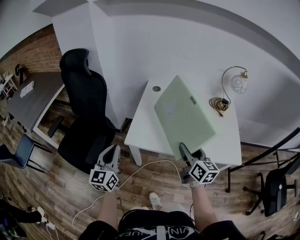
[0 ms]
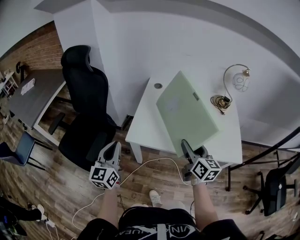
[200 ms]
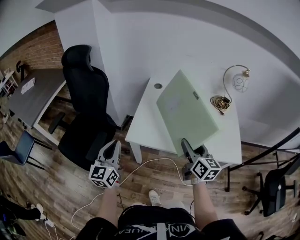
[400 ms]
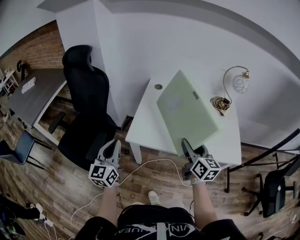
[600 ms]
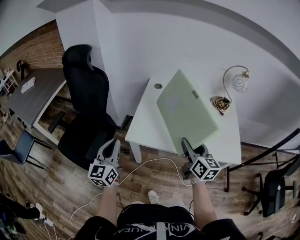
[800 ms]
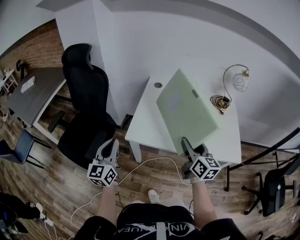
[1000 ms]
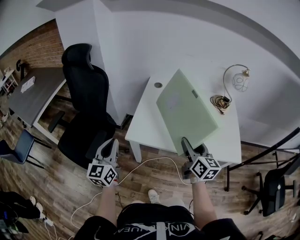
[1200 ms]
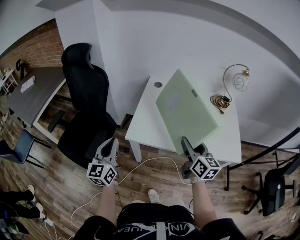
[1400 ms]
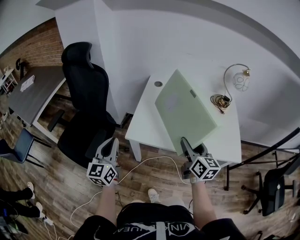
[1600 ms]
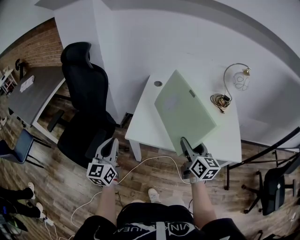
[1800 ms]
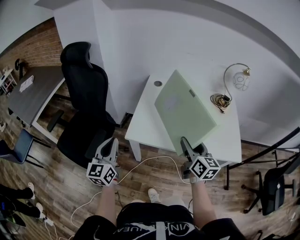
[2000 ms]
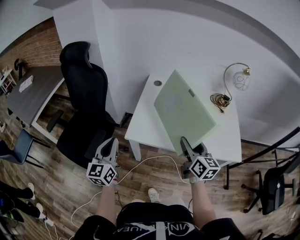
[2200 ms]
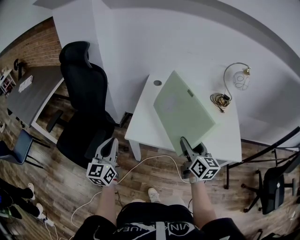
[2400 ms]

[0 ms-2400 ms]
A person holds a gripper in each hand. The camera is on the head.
0 ms to 2400 ms: The grippers stay close to where they were, moving slightly.

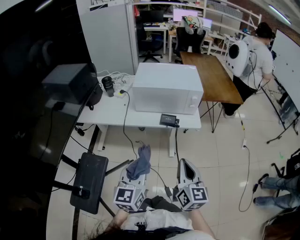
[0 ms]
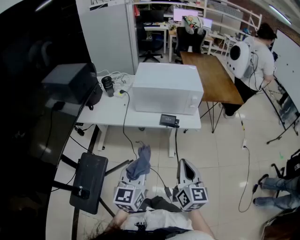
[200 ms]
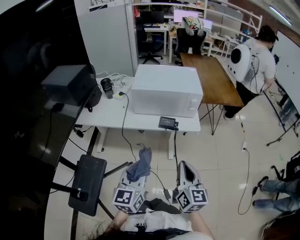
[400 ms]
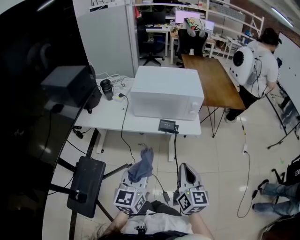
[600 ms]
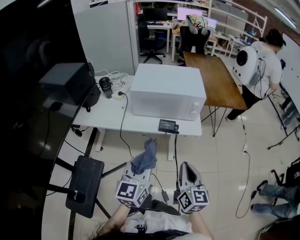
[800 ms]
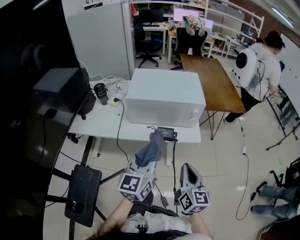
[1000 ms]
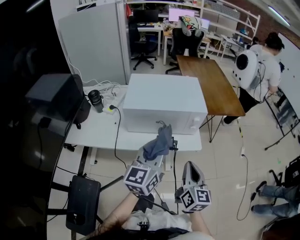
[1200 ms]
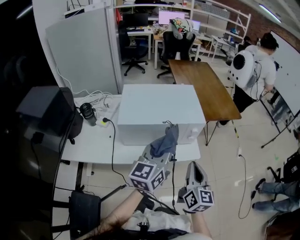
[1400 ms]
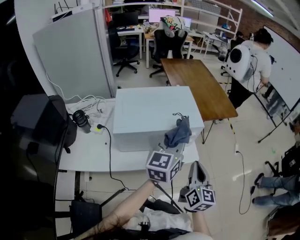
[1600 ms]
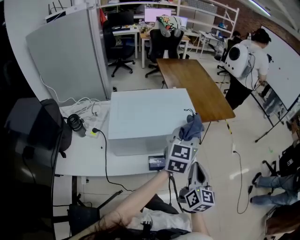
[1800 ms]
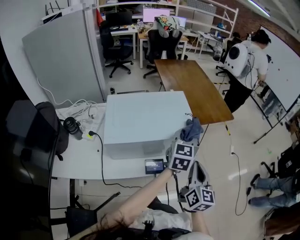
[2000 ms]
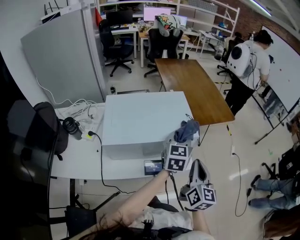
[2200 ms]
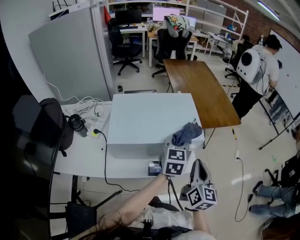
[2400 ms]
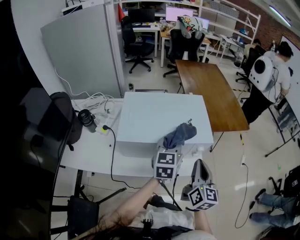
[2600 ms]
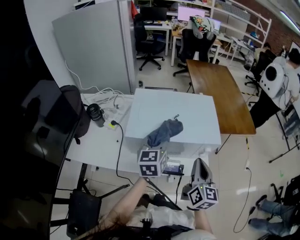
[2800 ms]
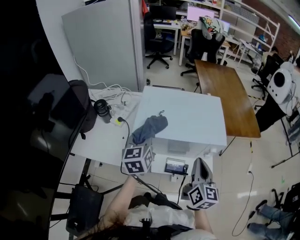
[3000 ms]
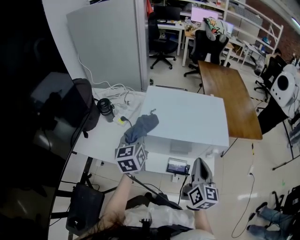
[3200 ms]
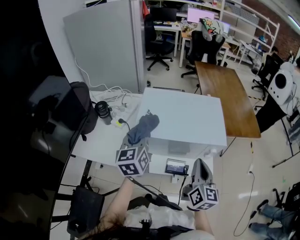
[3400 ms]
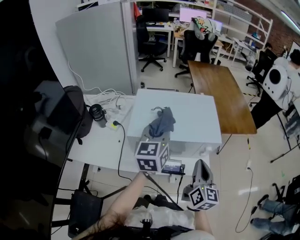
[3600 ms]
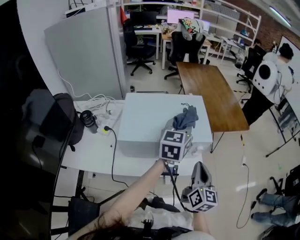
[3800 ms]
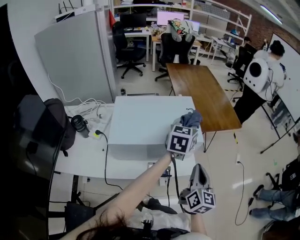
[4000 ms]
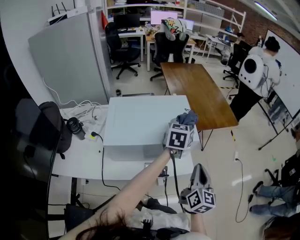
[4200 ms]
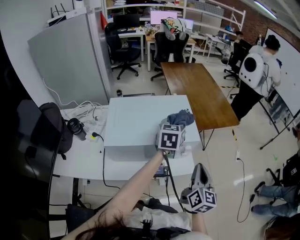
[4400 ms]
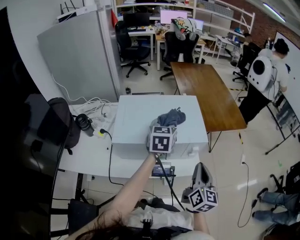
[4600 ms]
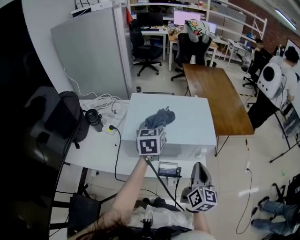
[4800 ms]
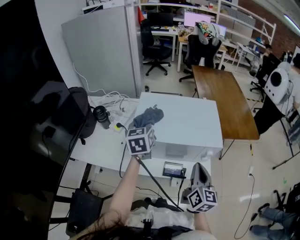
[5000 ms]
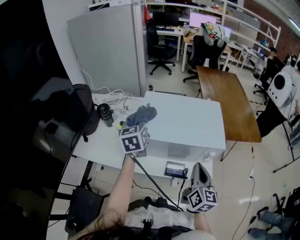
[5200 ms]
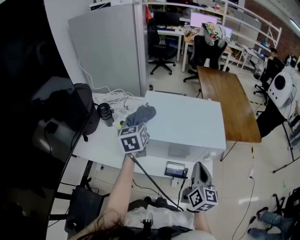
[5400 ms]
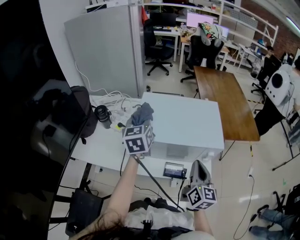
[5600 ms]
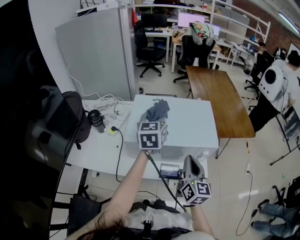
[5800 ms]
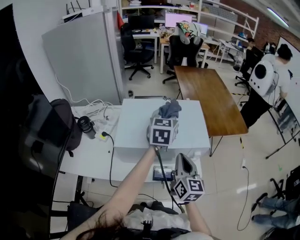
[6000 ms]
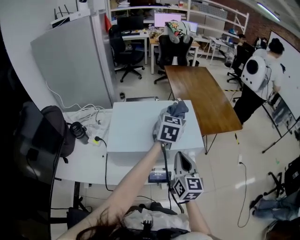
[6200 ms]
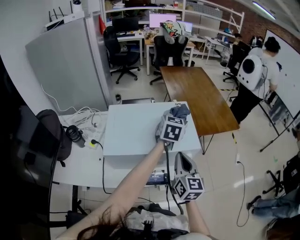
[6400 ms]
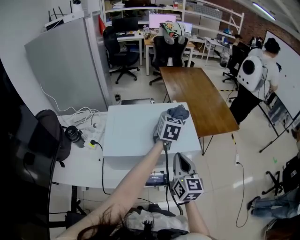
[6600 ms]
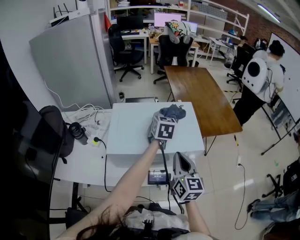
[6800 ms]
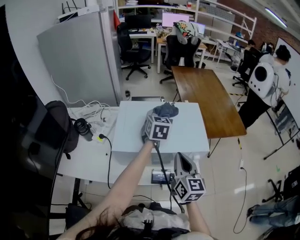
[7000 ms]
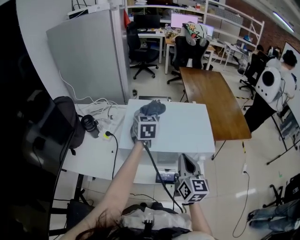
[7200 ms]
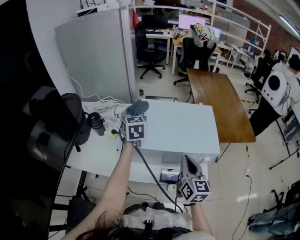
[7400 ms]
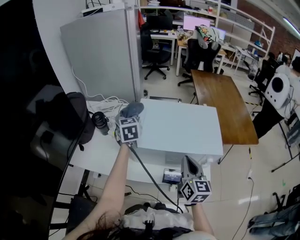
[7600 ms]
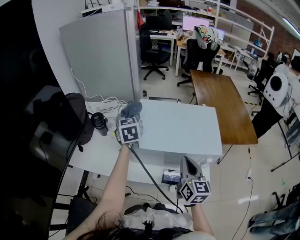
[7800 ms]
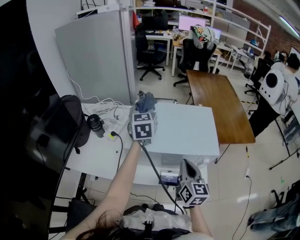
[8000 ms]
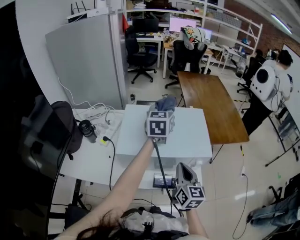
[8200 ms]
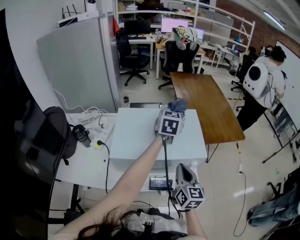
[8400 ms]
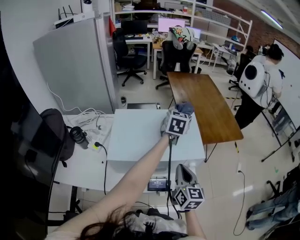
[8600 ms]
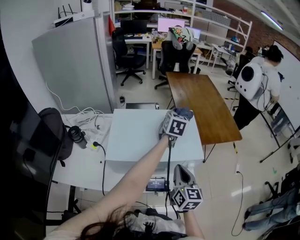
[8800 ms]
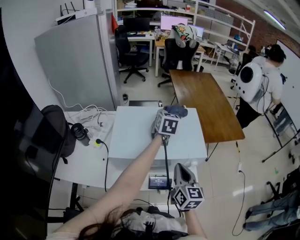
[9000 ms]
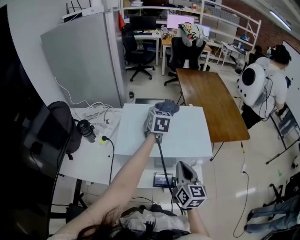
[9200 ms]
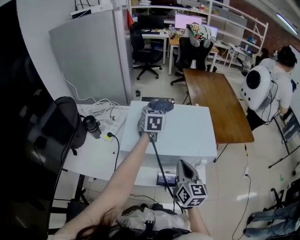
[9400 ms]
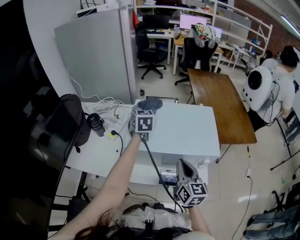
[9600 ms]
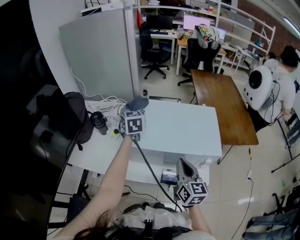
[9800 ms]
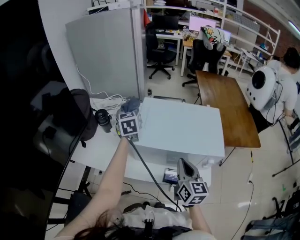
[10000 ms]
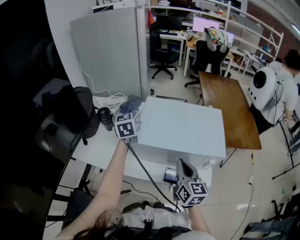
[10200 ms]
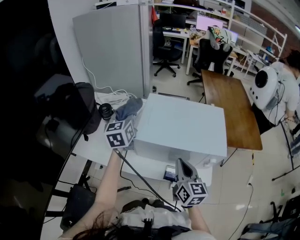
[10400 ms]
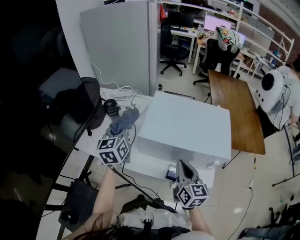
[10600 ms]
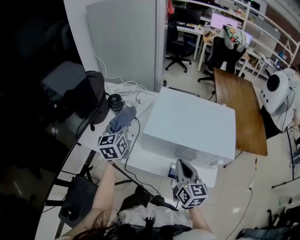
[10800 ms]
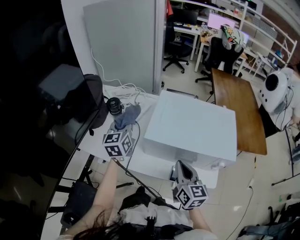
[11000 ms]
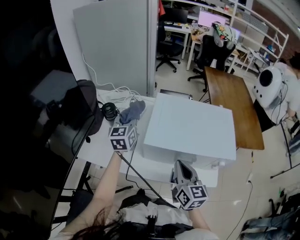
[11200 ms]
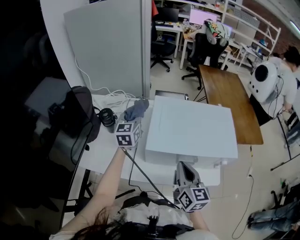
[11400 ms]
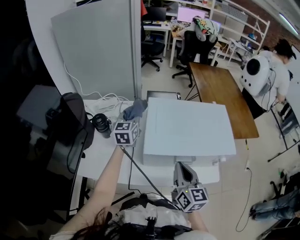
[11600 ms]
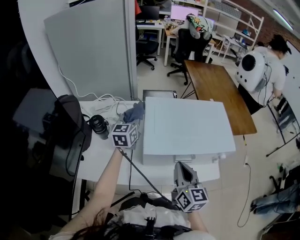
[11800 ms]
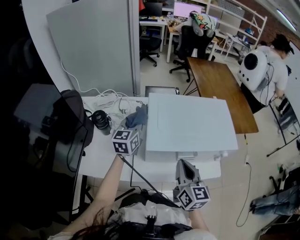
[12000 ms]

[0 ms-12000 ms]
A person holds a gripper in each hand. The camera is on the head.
0 ms to 1600 ms: The left gripper shifts approximately 40 cm forward, and changes its angle by roughly 30 degrees, while the right gripper is displaced forward by some 25 cm, and changes its angle by some 20 degrees.
1600 ms to 3000 ms: The left gripper changes place by some 25 cm, and turns by approximately 40 degrees. Meanwhile the right gripper changes place by roughly 10 cm.
3000 ms to 4400 ms: The left gripper shifts by some 30 cm, and rotates roughly 30 degrees; the right gripper moves about 10 cm.
4400 ms to 6000 ms: The right gripper changes place by about 15 cm.
6000 ms to 7600 ms: The left gripper moves about 30 cm, and changes its angle by some 30 degrees.
7600 ms to 9000 ms: The left gripper moves some 5 cm upward and comes back, and rotates some 30 degrees; the right gripper shifts by roughly 5 cm.
9000 ms to 10400 ms: The right gripper heads to the left, covering some 10 cm. The left gripper moves to the left, some 35 cm, and turns by roughly 30 degrees.
10400 ms to 12000 ms: The right gripper heads to the left, covering approximately 5 cm, while the left gripper moves forward and backward over about 20 cm, changing direction 2 times, and changes its angle by some 20 degrees.

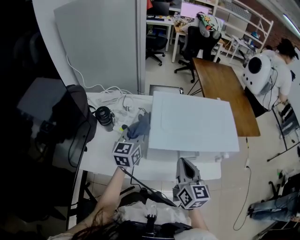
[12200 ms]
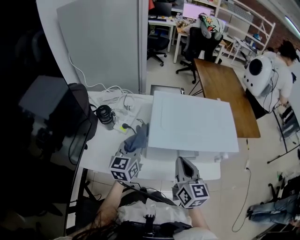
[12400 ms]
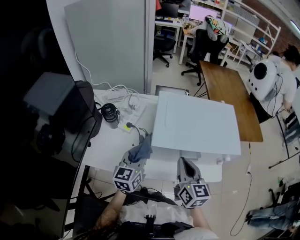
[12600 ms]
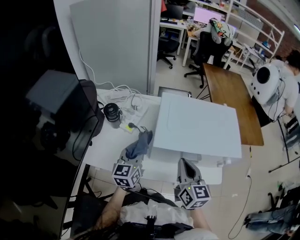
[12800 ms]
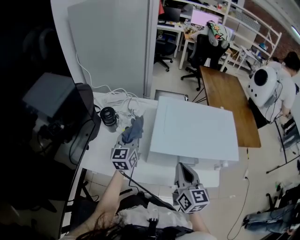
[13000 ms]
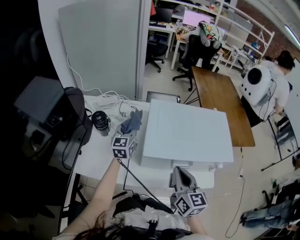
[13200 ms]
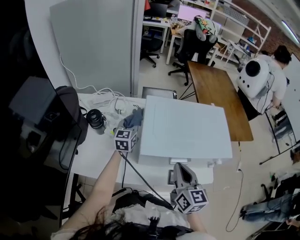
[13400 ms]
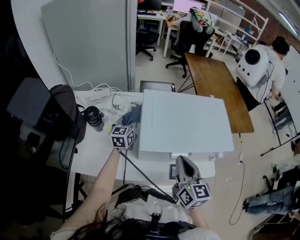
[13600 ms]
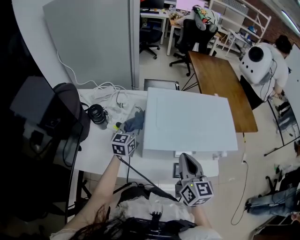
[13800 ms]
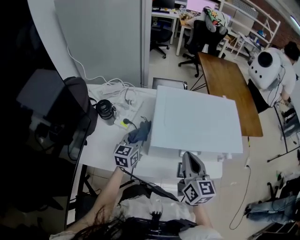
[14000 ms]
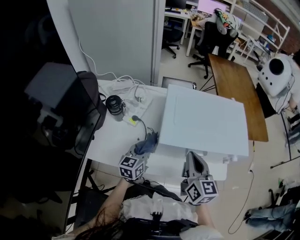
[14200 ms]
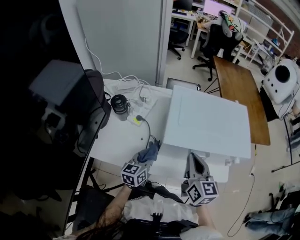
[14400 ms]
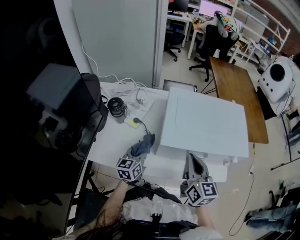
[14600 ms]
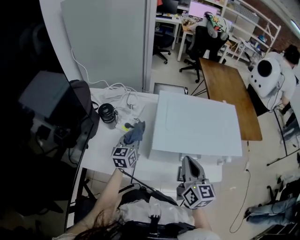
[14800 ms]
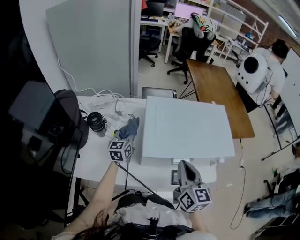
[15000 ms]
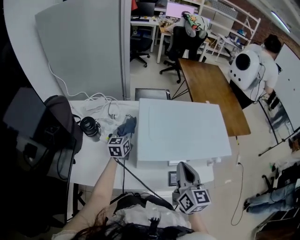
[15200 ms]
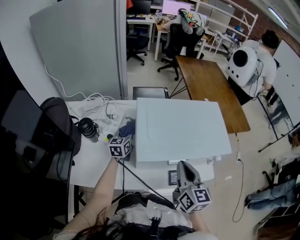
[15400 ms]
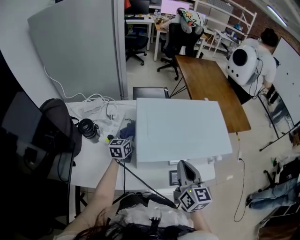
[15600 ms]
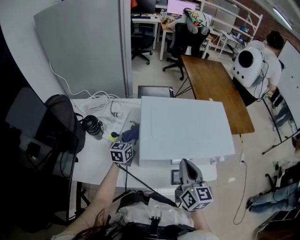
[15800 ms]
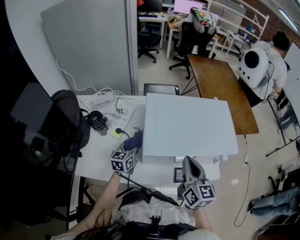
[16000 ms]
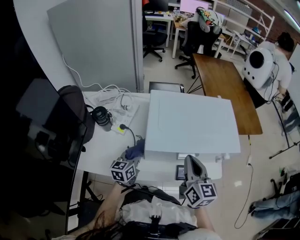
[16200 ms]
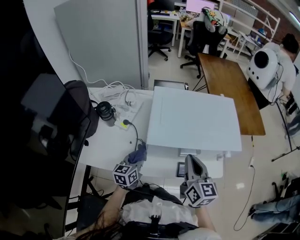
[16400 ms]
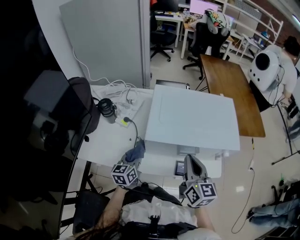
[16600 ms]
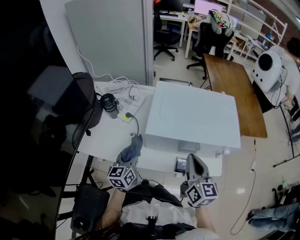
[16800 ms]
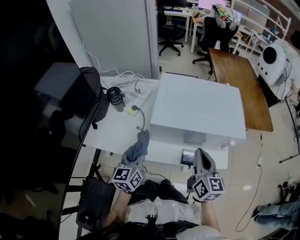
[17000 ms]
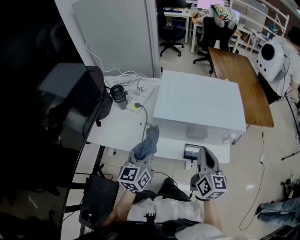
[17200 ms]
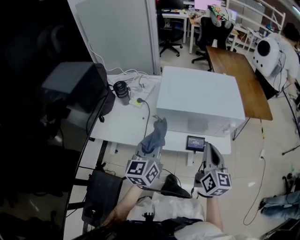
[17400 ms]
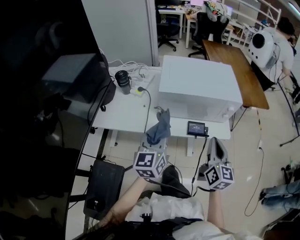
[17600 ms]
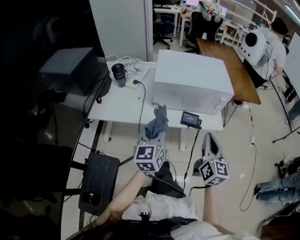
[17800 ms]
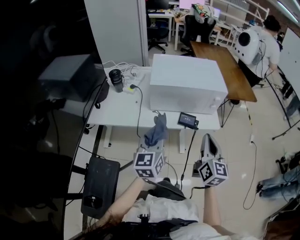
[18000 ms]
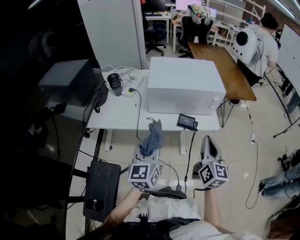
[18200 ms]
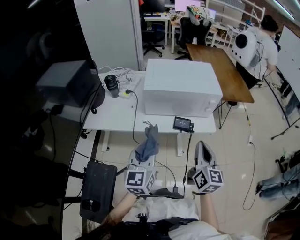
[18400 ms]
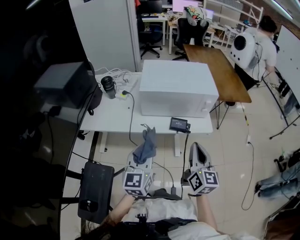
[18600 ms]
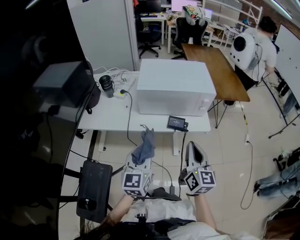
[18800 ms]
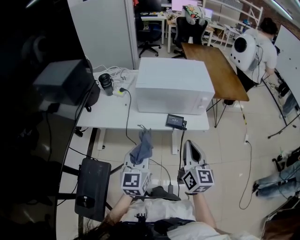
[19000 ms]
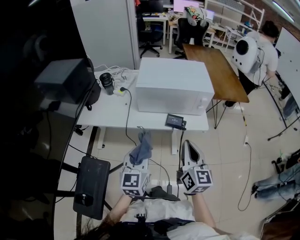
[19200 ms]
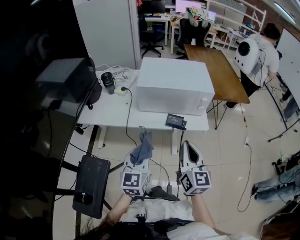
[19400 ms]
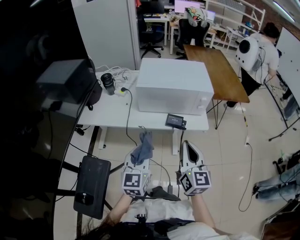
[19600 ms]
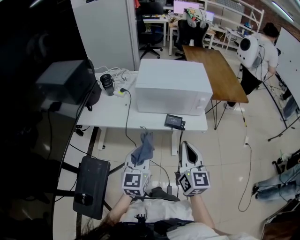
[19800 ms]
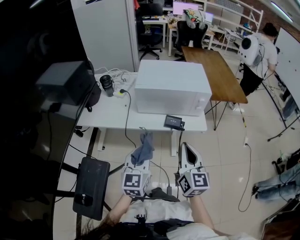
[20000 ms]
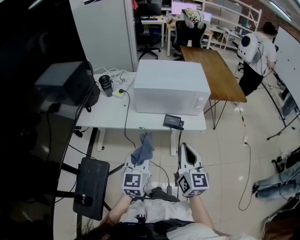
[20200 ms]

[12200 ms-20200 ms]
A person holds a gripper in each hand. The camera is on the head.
12200 ms to 13800 ms: The left gripper goes forward and backward, about 20 cm each way, reversing 2 times.
13800 ms to 15400 ms: The left gripper heads downward, covering roughly 5 cm, and reaches some 15 cm backward, then returns.
15400 ms to 17000 ms: The right gripper travels backward by approximately 5 cm. The left gripper shifts some 30 cm backward.
17000 ms to 18600 ms: The left gripper heads backward and to the right, covering about 25 cm. Meanwhile the right gripper shifts about 20 cm backward.
18600 ms to 20200 ms: The grippers stay close to where they were, moving slightly.

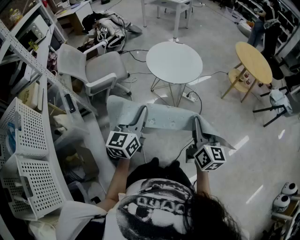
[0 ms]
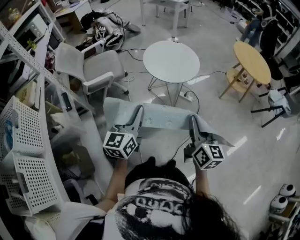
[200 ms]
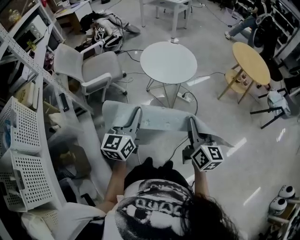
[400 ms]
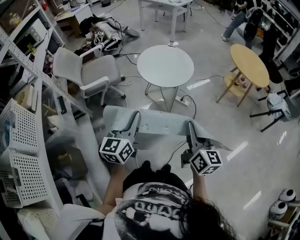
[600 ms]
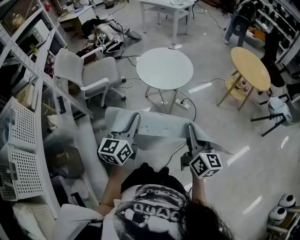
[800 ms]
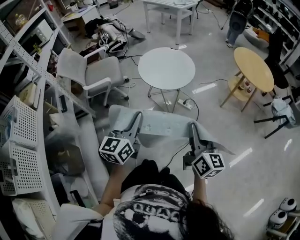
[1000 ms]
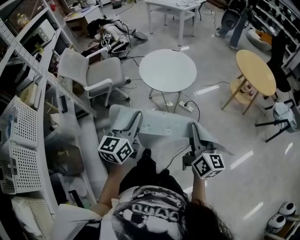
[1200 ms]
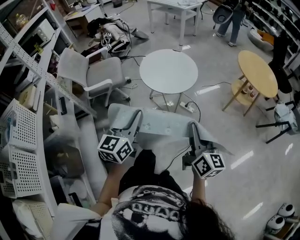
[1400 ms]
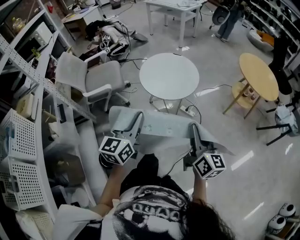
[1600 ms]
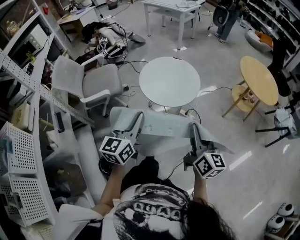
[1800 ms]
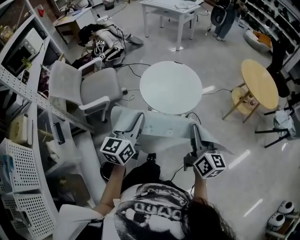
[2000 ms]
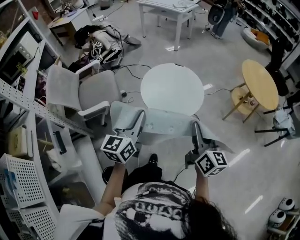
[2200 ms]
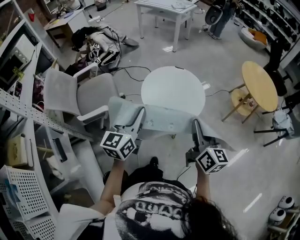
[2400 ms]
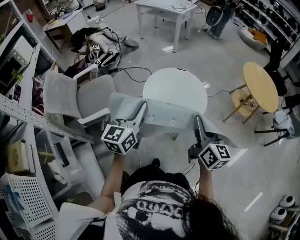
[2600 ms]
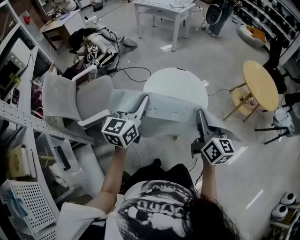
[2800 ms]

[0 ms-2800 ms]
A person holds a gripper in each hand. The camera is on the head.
0 ms to 1400 ms: The right gripper goes roughly 15 cm to the right and forward; the left gripper goes approximately 10 cm to the right.
1400 ms to 2800 ms: The right gripper is displaced forward and to the left by approximately 30 cm. The left gripper is displaced forward by approximately 35 cm.
